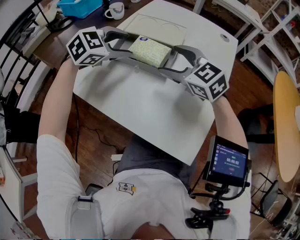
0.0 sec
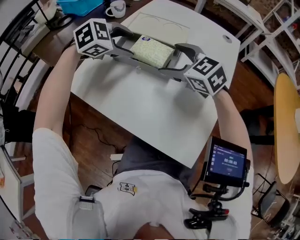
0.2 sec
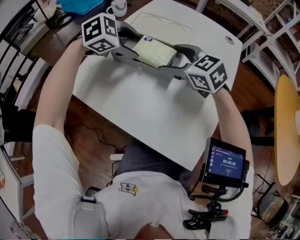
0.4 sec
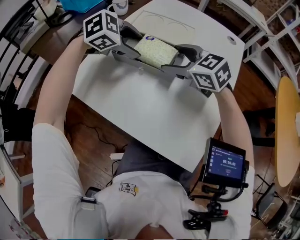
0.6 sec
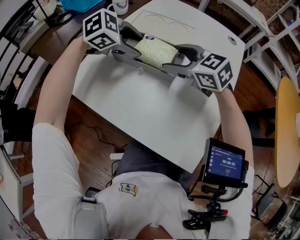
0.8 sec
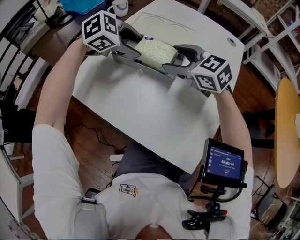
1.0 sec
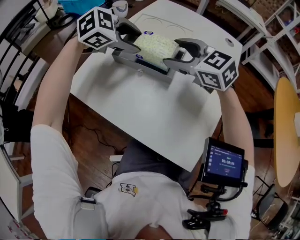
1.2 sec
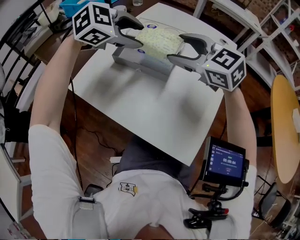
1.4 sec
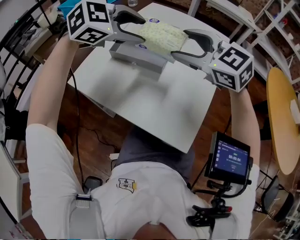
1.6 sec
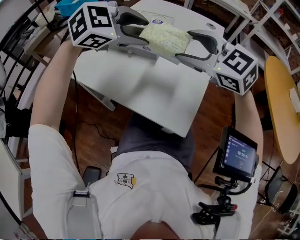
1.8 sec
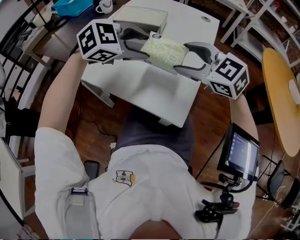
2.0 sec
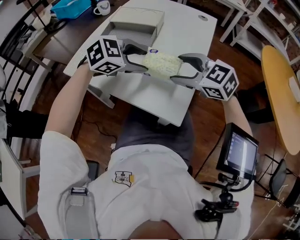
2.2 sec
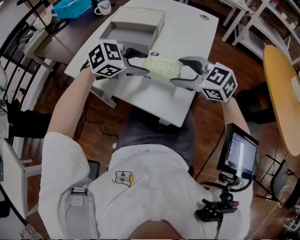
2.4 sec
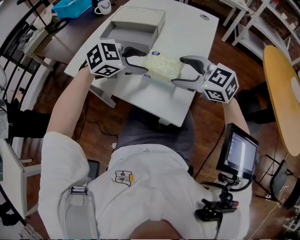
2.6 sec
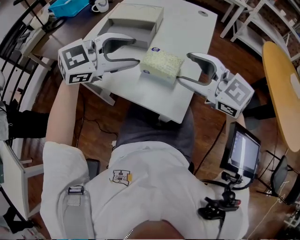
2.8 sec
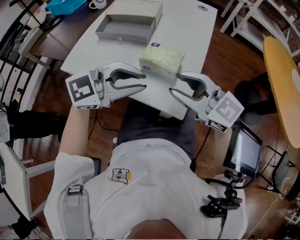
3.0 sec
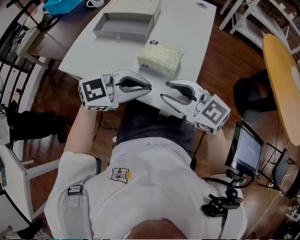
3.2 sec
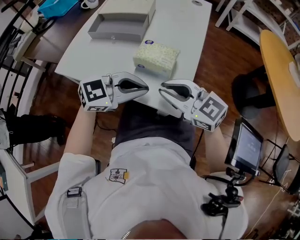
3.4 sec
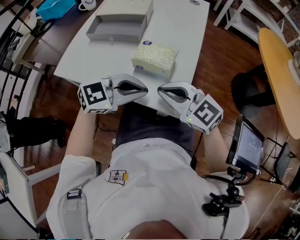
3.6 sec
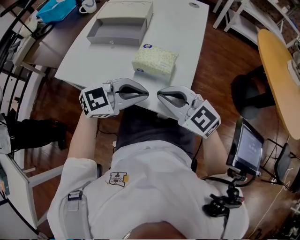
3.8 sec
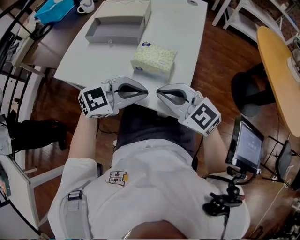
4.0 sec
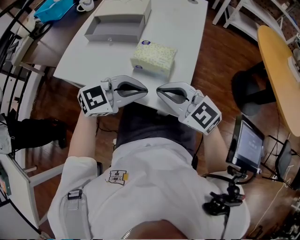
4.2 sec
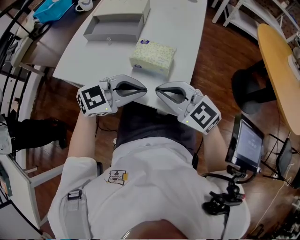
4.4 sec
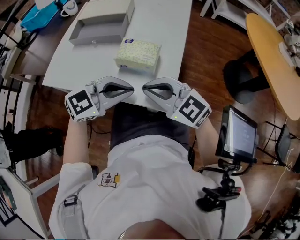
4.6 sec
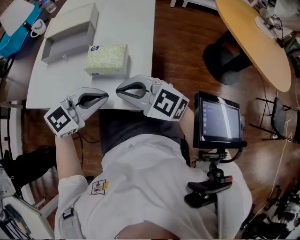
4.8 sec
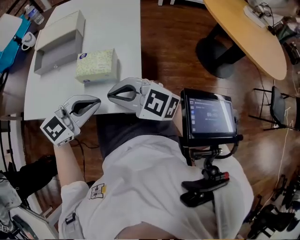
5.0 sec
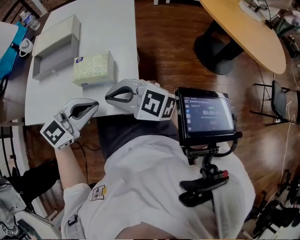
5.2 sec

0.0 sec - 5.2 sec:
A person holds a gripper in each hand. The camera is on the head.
0.0 sec - 1.8 sec: The right gripper ends up roughly 20 cm from where it was; the left gripper moves approximately 20 cm.
1.8 sec - 3.4 sec: The right gripper swings up and down, roughly 15 cm each way, with 2 reversals, rotates roughly 20 degrees, and closes its fingers, while the left gripper moves up and down over roughly 15 cm, changing direction 2 times, changes its angle by about 30 degrees, and closes.
3.4 sec - 5.2 sec: The grippers make only small movements.

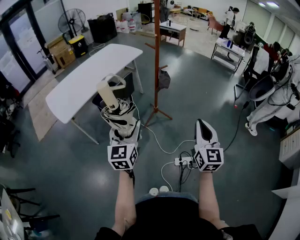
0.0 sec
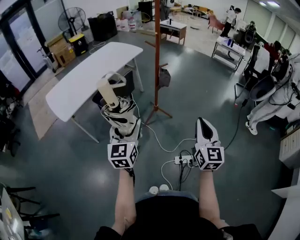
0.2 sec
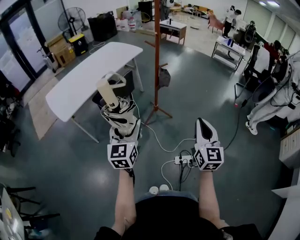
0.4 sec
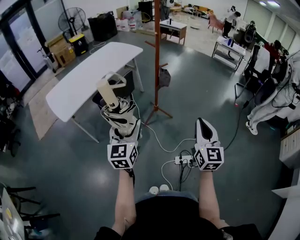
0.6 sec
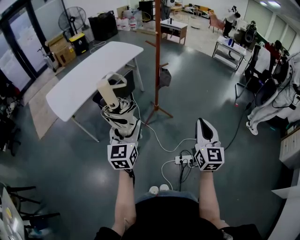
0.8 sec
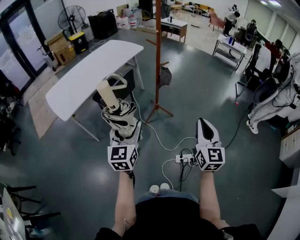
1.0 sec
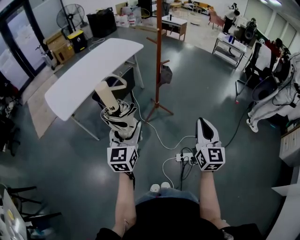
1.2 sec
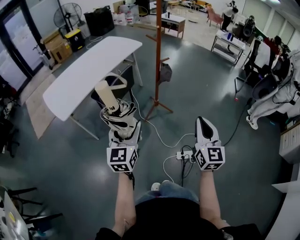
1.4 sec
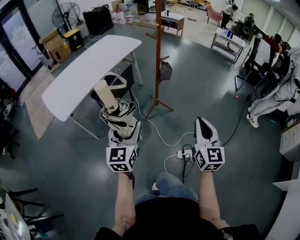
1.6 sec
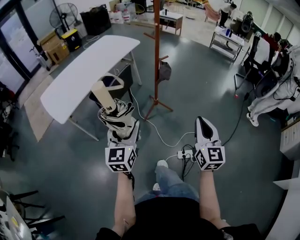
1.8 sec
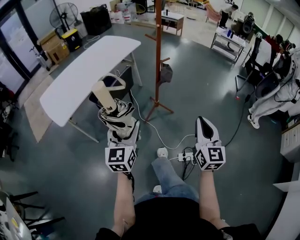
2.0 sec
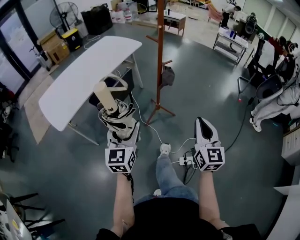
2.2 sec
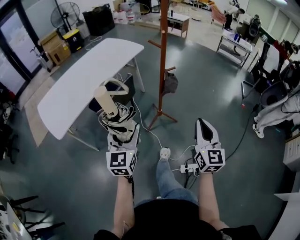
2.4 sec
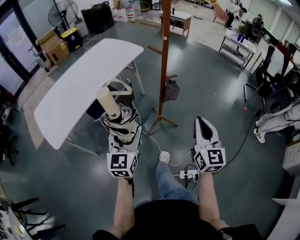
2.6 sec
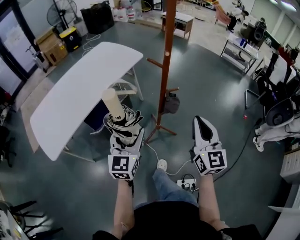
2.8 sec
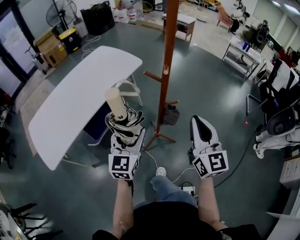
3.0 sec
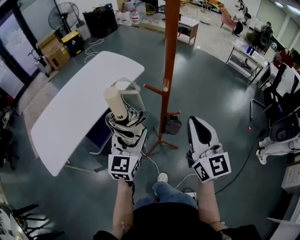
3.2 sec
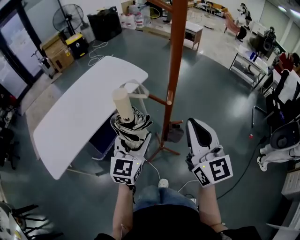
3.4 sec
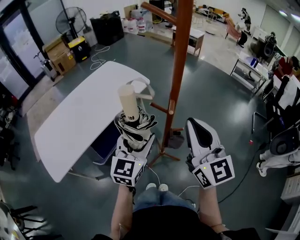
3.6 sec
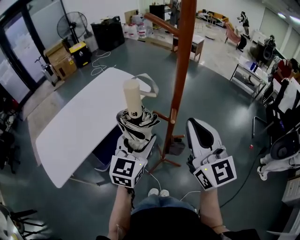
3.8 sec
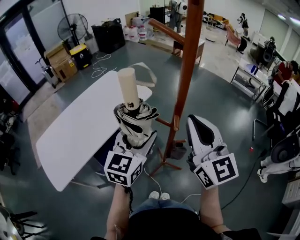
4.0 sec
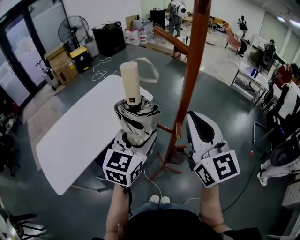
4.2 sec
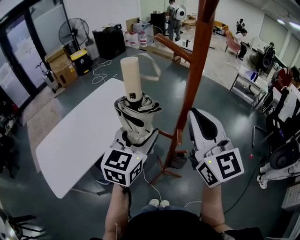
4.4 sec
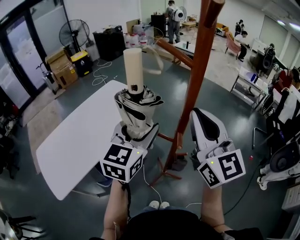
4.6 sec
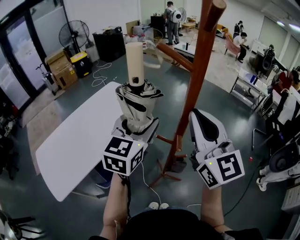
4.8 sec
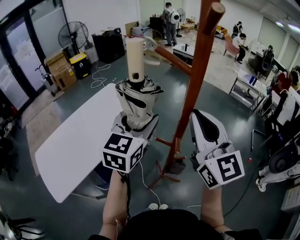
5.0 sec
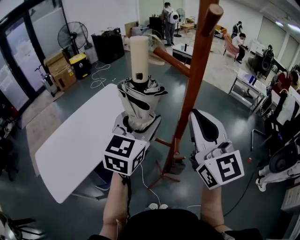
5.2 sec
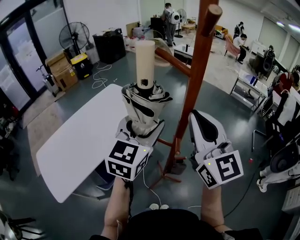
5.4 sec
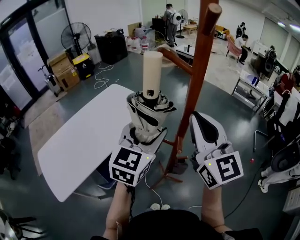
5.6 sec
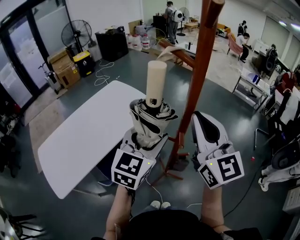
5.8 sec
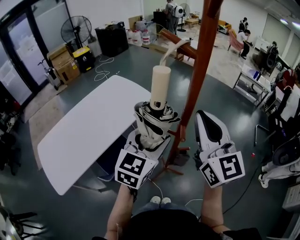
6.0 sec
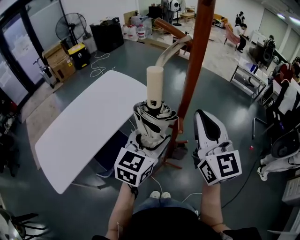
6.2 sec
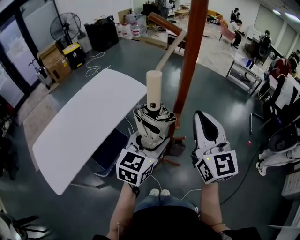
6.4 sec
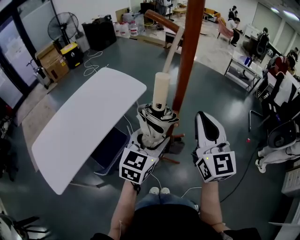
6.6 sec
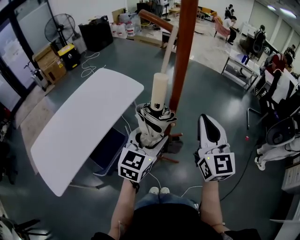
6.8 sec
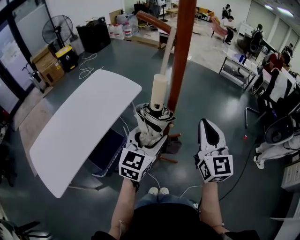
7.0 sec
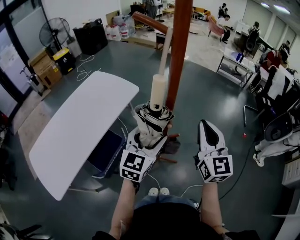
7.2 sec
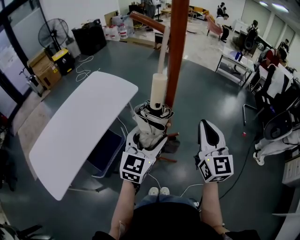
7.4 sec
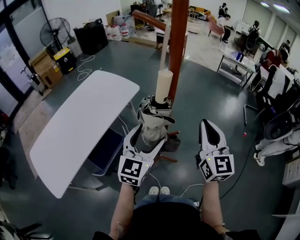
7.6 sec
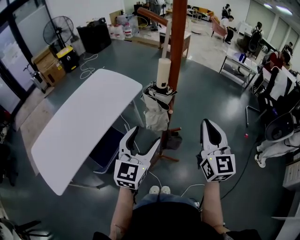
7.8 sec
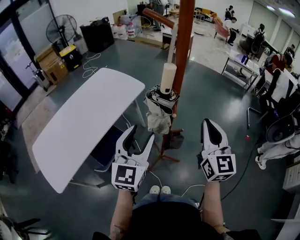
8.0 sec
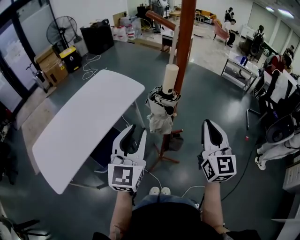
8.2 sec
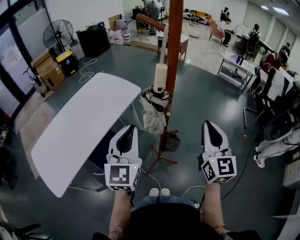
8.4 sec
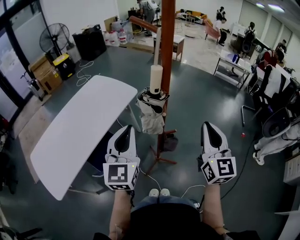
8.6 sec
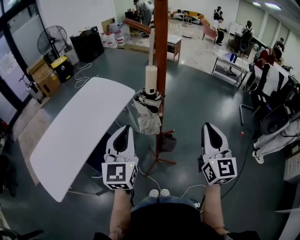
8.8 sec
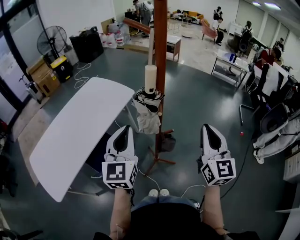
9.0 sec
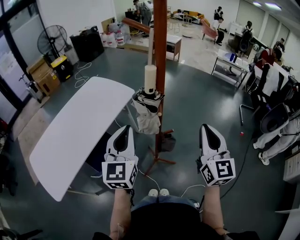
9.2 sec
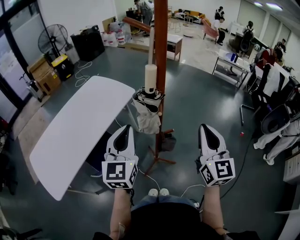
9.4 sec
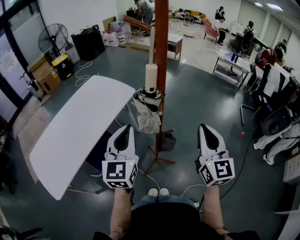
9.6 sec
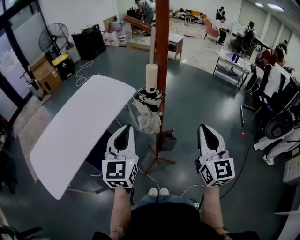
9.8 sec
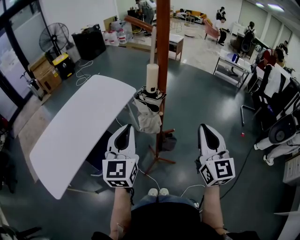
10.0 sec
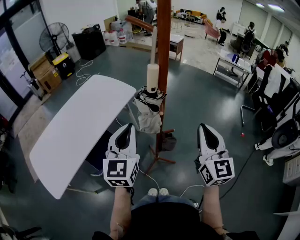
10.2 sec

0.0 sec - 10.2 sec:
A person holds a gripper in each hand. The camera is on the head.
0.0 sec - 1.4 sec: The grippers stay close to where they were, moving slightly.
1.4 sec - 3.0 sec: The pair of grippers is taken forward, roughly 50 cm.
3.0 sec - 4.4 sec: The left gripper heads forward and upward, covering roughly 20 cm. The right gripper goes roughly 25 cm upward, forward and to the left.
4.4 sec - 5.8 sec: The left gripper reaches approximately 10 cm upward, then returns.
5.8 sec - 7.2 sec: The left gripper shifts some 10 cm downward. The right gripper travels downward and to the right by some 15 cm, and turns by roughly 20 degrees.
7.2 sec - 8.8 sec: The left gripper shifts about 10 cm upward, backward and to the left, swivels roughly 20 degrees, and closes its fingers. Meanwhile the right gripper is displaced backward by roughly 5 cm.
8.8 sec - 10.2 sec: There are only small adjustments of the grippers.

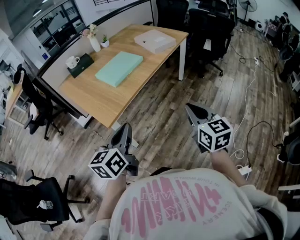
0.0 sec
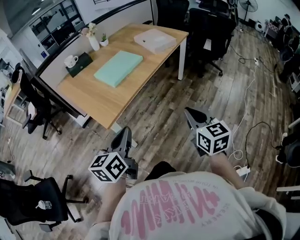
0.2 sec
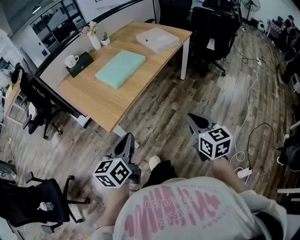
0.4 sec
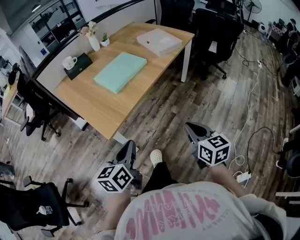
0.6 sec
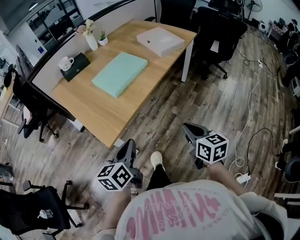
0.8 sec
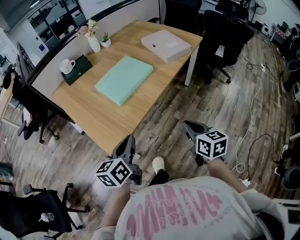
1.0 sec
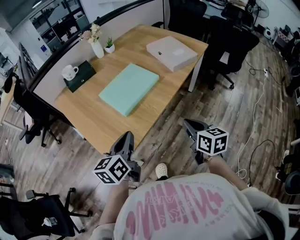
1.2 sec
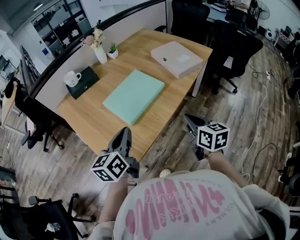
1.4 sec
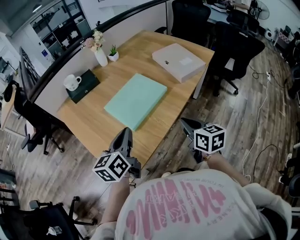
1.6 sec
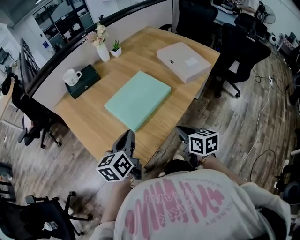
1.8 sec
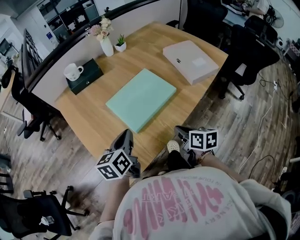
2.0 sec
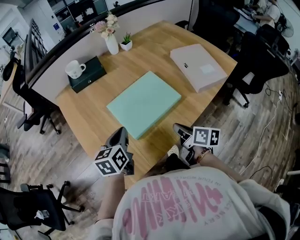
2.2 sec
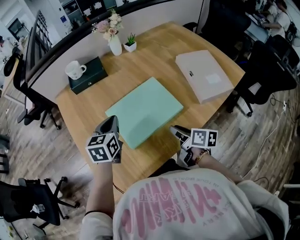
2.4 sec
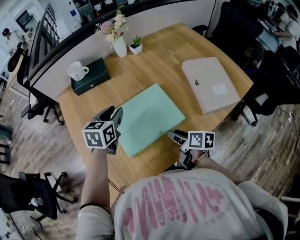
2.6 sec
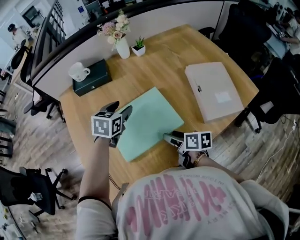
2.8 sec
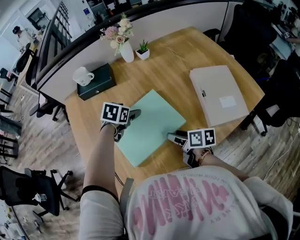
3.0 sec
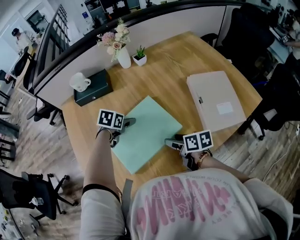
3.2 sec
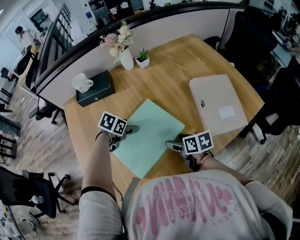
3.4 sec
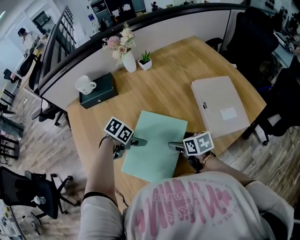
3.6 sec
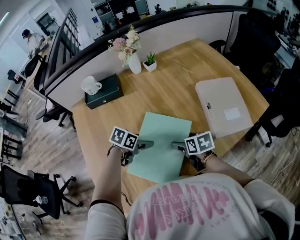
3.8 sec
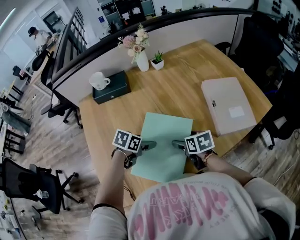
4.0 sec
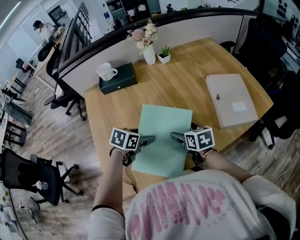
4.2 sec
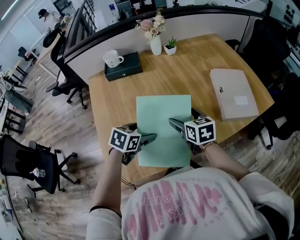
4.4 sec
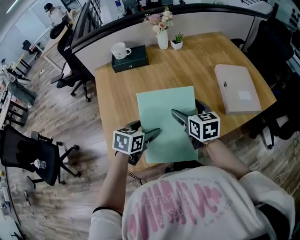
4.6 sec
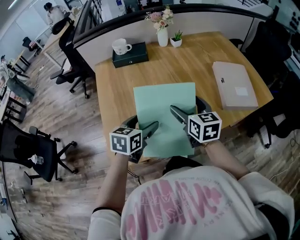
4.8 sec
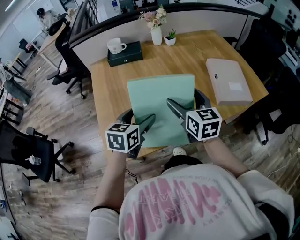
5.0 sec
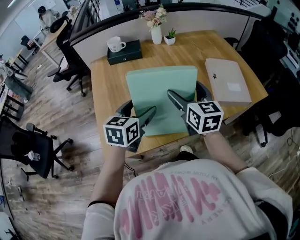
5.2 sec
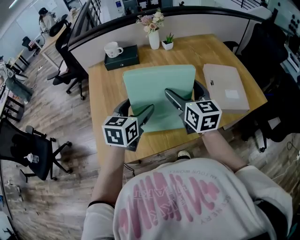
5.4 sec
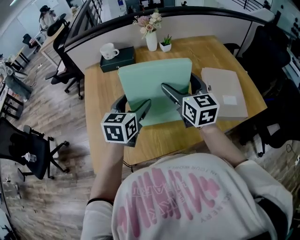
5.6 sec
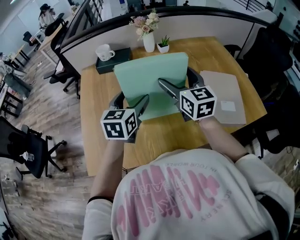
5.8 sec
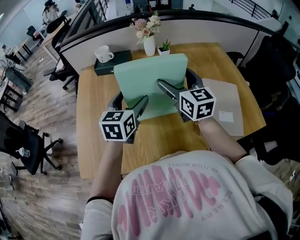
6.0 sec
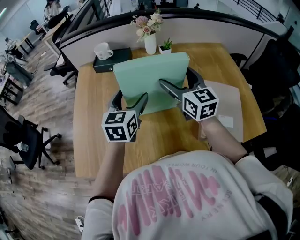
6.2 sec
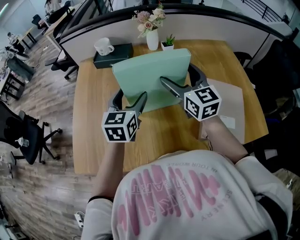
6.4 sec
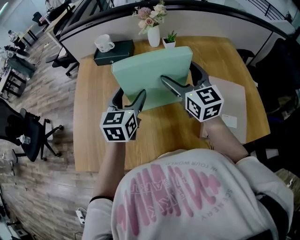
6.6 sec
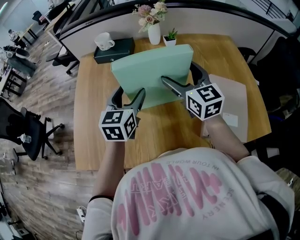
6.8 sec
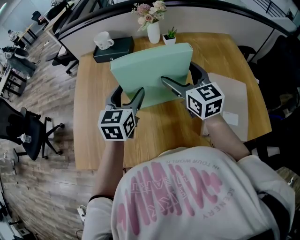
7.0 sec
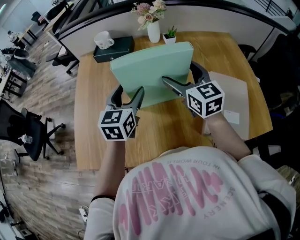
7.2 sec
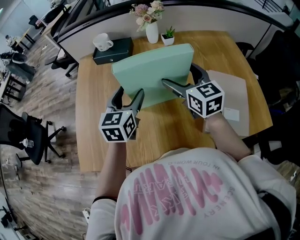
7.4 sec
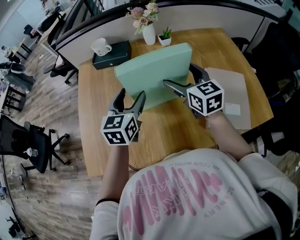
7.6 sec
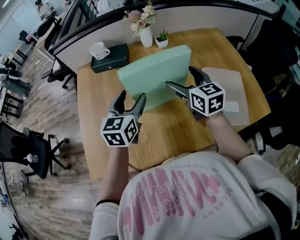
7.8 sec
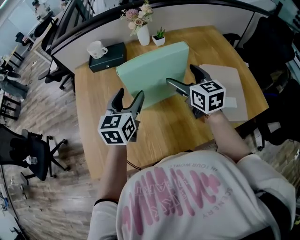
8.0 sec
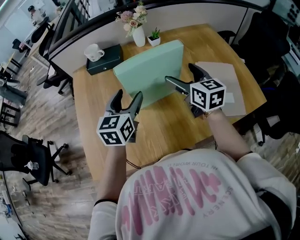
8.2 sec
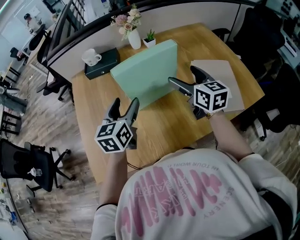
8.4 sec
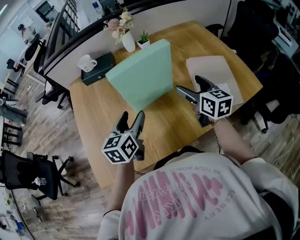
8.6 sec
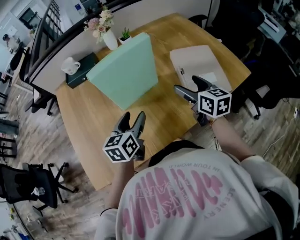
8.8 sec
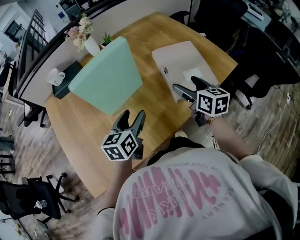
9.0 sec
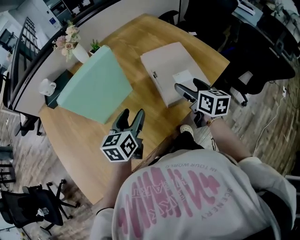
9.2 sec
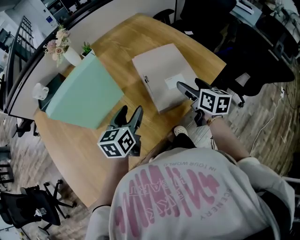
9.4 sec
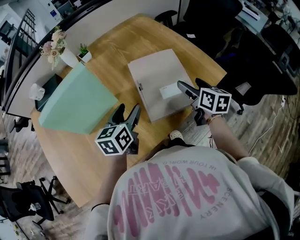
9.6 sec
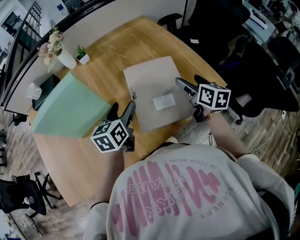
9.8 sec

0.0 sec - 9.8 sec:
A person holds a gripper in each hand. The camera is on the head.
0.0 sec - 1.4 sec: The grippers both shift forward by roughly 30 cm.
1.4 sec - 2.8 sec: The left gripper moves roughly 35 cm, turns by some 30 degrees, and opens up, while the right gripper shifts by approximately 30 cm, turns by roughly 40 degrees, and opens its fingers.
2.8 sec - 4.2 sec: The left gripper ends up roughly 15 cm from where it was, and turns by about 20 degrees. Meanwhile the right gripper ends up some 5 cm from where it was, changes its angle by approximately 30 degrees, and opens.
4.2 sec - 5.6 sec: Both grippers move upward, about 20 cm. The left gripper turns by roughly 40 degrees, while the right gripper tips its fingers upward by approximately 30 degrees.
5.6 sec - 7.0 sec: Both grippers move forward and to the right, approximately 10 cm.
7.0 sec - 8.4 sec: The right gripper goes roughly 5 cm backward, and rotates roughly 20 degrees, while the left gripper shifts by roughly 5 cm.
8.4 sec - 9.8 sec: The right gripper moves roughly 40 cm, and changes its angle by about 30 degrees. The left gripper shifts by approximately 30 cm.
